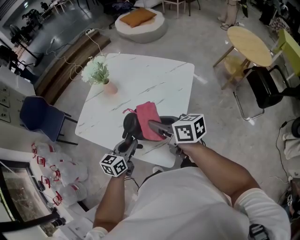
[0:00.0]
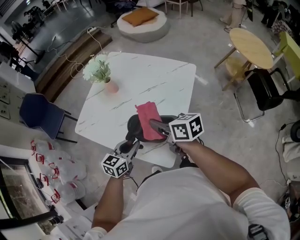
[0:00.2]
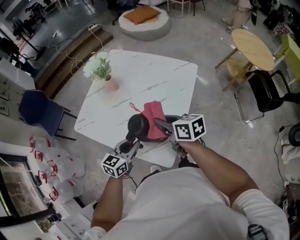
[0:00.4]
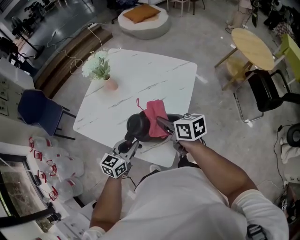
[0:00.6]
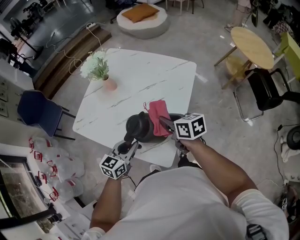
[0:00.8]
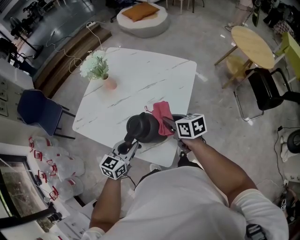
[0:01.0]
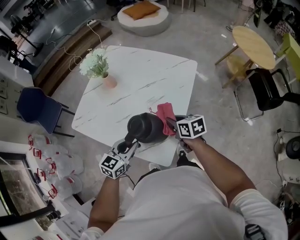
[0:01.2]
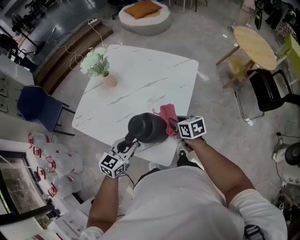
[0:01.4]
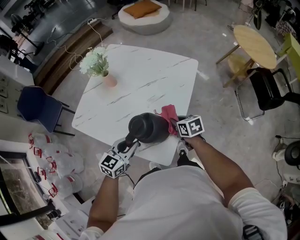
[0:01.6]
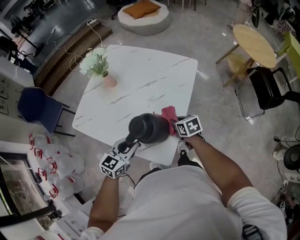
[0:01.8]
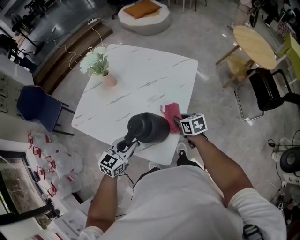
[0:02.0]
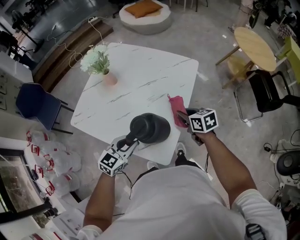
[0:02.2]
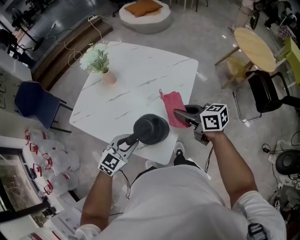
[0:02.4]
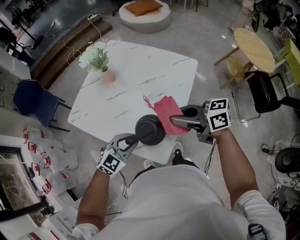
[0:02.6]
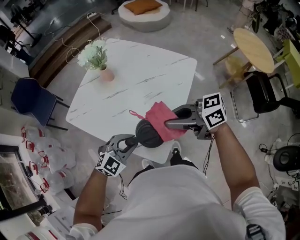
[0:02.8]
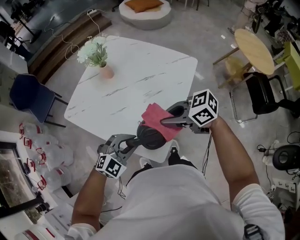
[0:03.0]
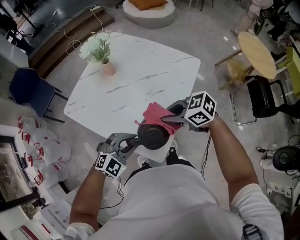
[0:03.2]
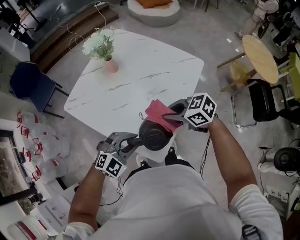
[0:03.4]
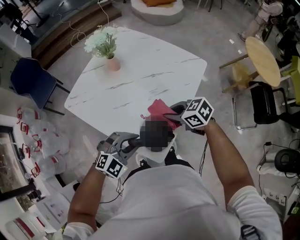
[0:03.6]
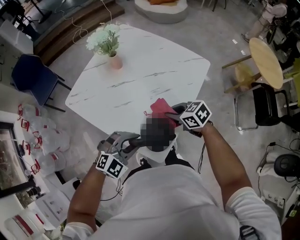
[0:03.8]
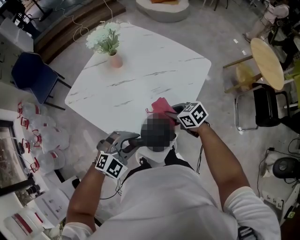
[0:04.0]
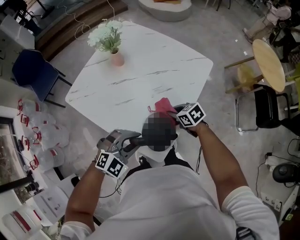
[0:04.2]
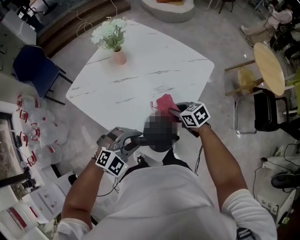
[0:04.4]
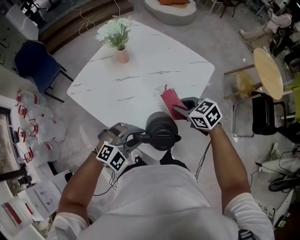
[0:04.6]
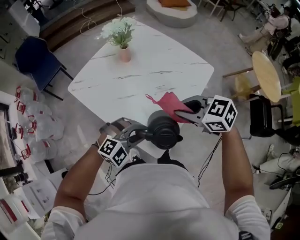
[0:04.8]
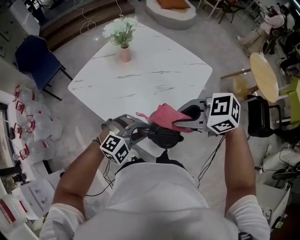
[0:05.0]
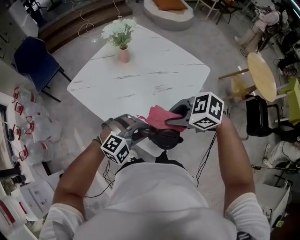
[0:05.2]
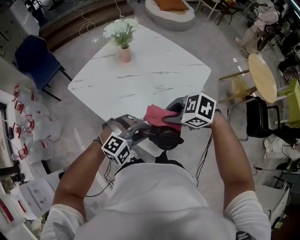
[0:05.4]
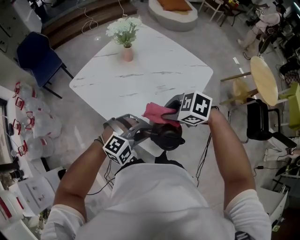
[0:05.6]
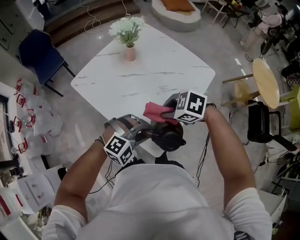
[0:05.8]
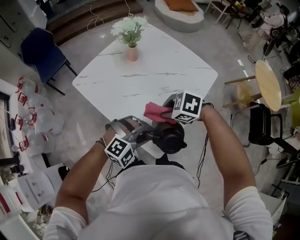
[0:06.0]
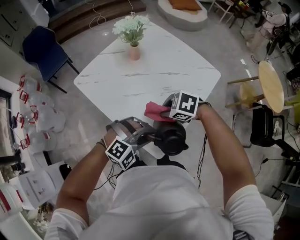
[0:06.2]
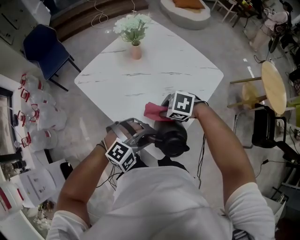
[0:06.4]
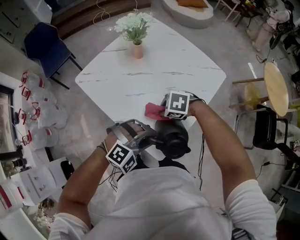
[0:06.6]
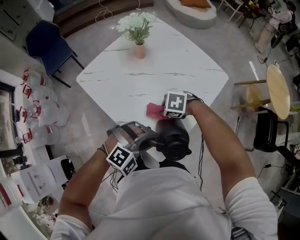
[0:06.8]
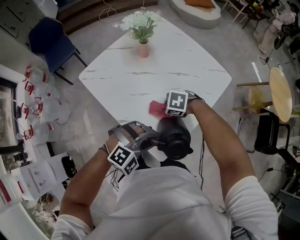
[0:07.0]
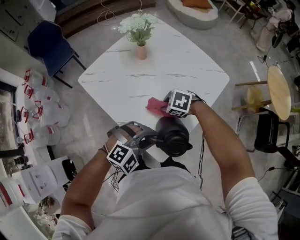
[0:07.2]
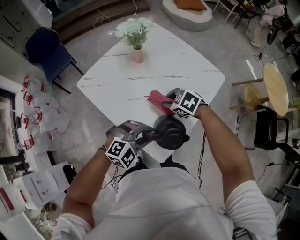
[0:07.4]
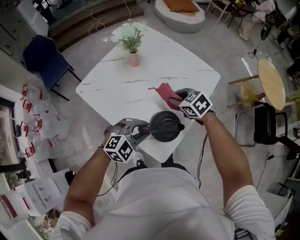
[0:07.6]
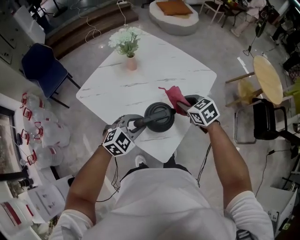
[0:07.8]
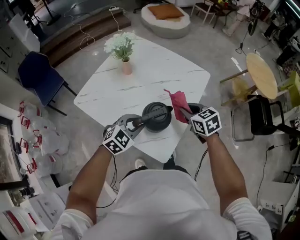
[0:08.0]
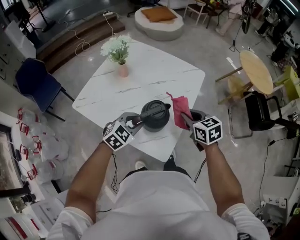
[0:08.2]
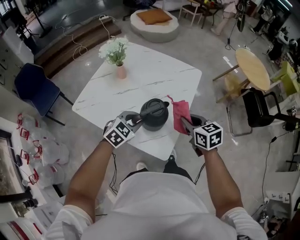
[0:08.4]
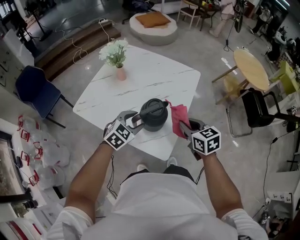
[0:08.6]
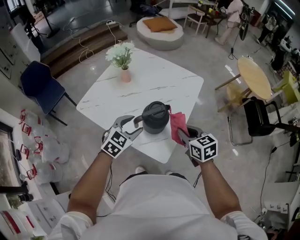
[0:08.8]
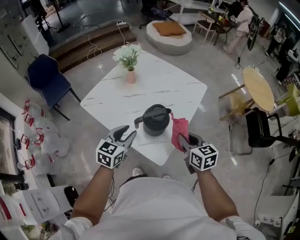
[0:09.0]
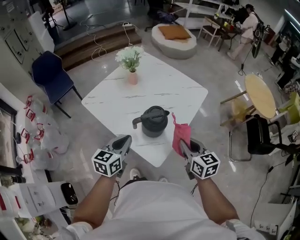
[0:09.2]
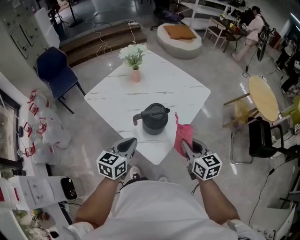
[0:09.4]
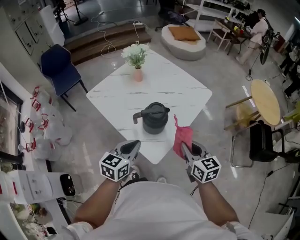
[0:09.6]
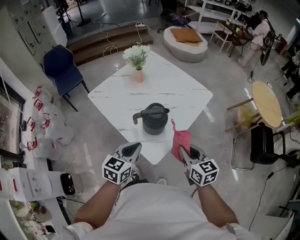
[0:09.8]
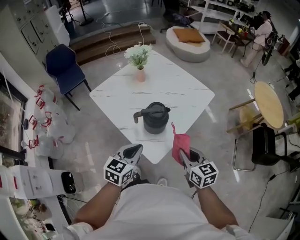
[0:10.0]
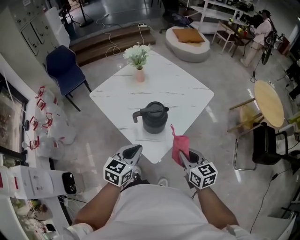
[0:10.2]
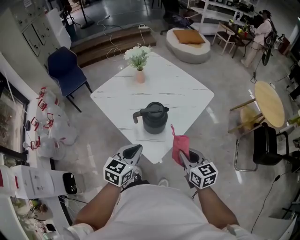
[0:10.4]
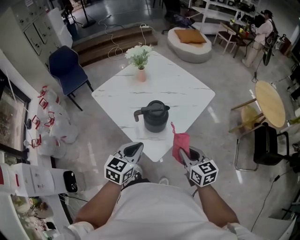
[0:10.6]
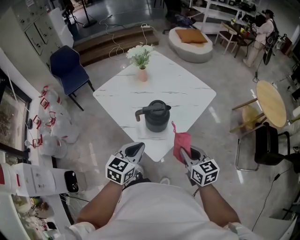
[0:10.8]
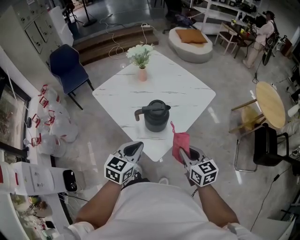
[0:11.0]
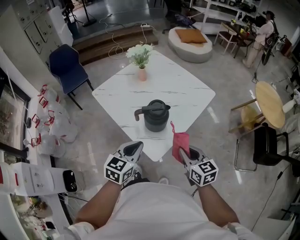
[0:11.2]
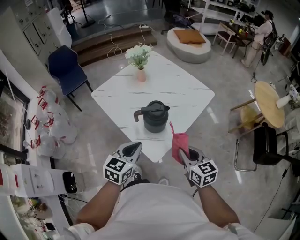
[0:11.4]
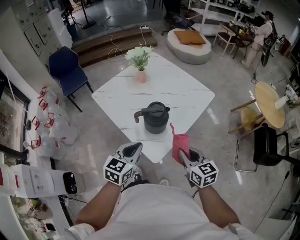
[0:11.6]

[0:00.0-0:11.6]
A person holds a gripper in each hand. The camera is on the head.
0:00.0 to 0:01.4: The right gripper travels downward and to the right by about 20 cm, and rotates some 30 degrees.
0:01.4 to 0:02.8: The left gripper turns by approximately 40 degrees; the right gripper shifts about 20 cm upward, and rotates approximately 50 degrees.
0:02.8 to 0:04.4: The right gripper shifts about 20 cm downward, and points its fingers about 40 degrees further downward.
0:04.4 to 0:05.8: The right gripper heads upward, covering about 10 cm, and swivels roughly 50 degrees.
0:05.8 to 0:07.2: The right gripper shifts some 10 cm downward.
0:07.2 to 0:08.8: The right gripper ends up approximately 25 cm from where it was, and angles its fingers upward, by approximately 30 degrees, while the left gripper ends up about 10 cm from where it was, changes its angle by some 40 degrees, and opens.
0:08.8 to 0:10.2: The left gripper heads backward, covering about 15 cm, turns by roughly 40 degrees, and closes up. Meanwhile the right gripper is displaced backward by some 10 cm.
0:10.2 to 0:11.6: The grippers stay close to where they were, moving slightly.

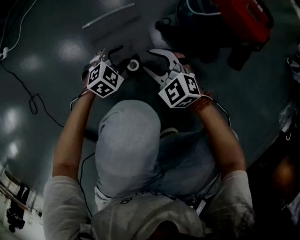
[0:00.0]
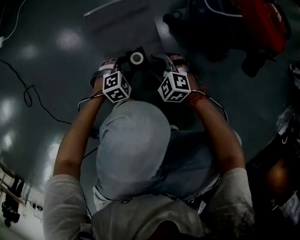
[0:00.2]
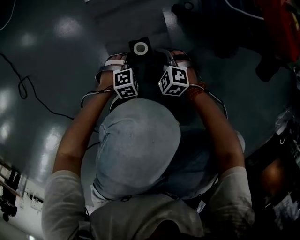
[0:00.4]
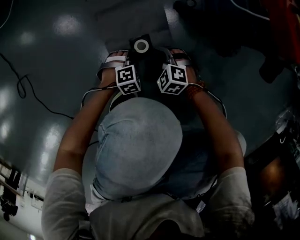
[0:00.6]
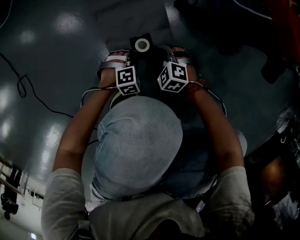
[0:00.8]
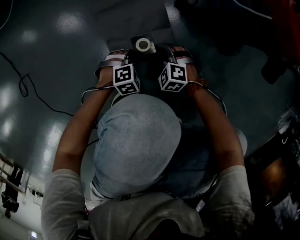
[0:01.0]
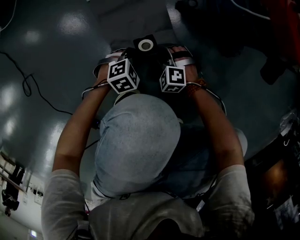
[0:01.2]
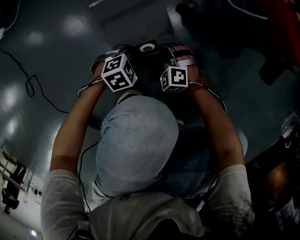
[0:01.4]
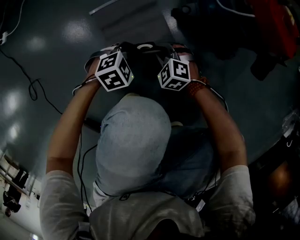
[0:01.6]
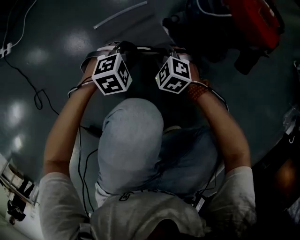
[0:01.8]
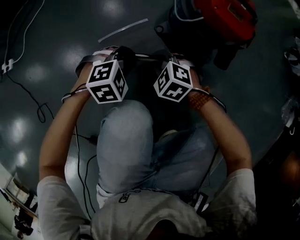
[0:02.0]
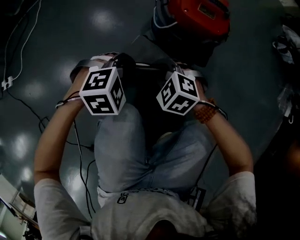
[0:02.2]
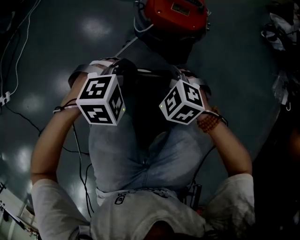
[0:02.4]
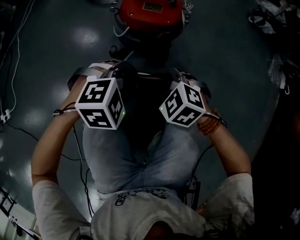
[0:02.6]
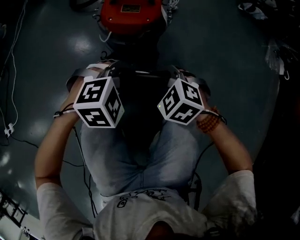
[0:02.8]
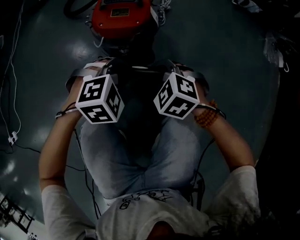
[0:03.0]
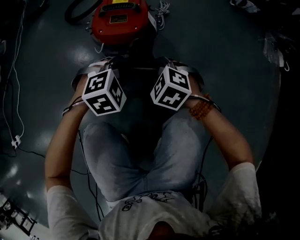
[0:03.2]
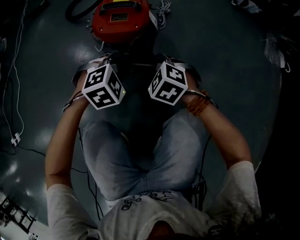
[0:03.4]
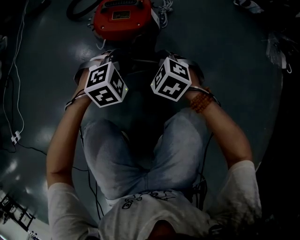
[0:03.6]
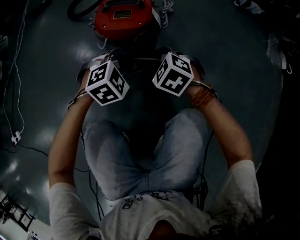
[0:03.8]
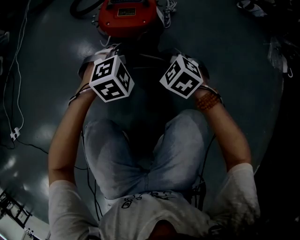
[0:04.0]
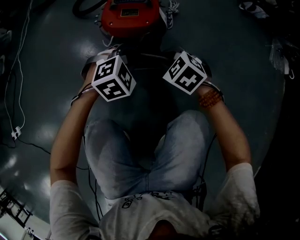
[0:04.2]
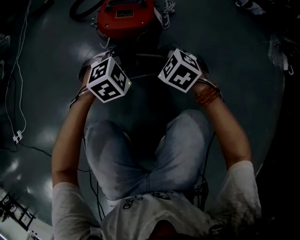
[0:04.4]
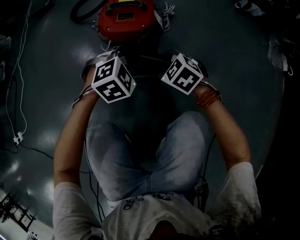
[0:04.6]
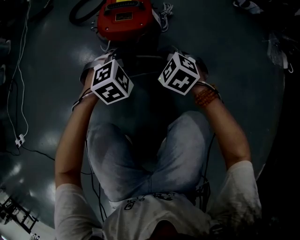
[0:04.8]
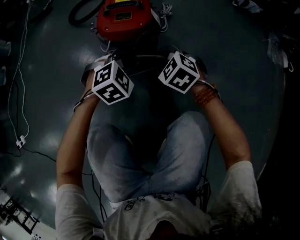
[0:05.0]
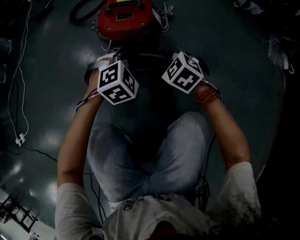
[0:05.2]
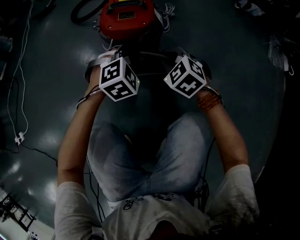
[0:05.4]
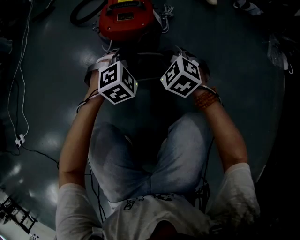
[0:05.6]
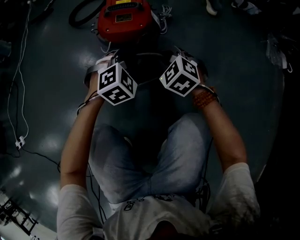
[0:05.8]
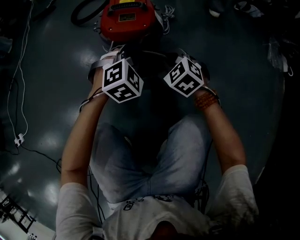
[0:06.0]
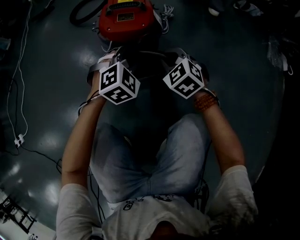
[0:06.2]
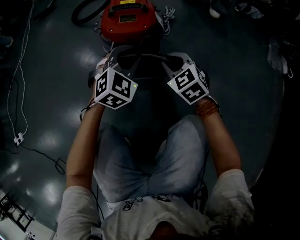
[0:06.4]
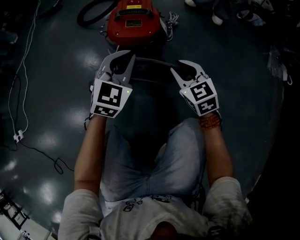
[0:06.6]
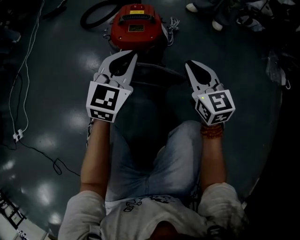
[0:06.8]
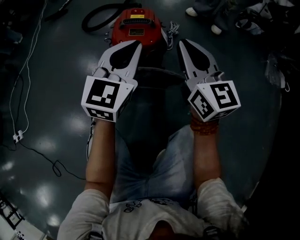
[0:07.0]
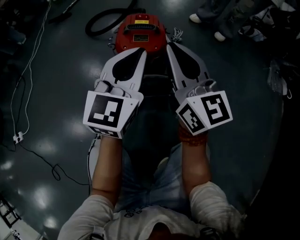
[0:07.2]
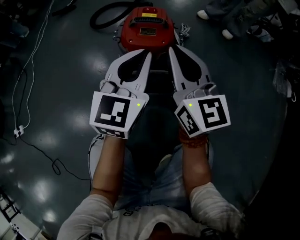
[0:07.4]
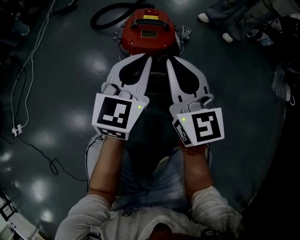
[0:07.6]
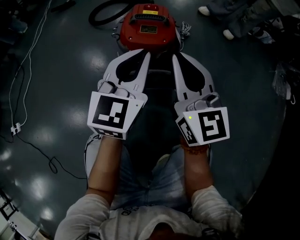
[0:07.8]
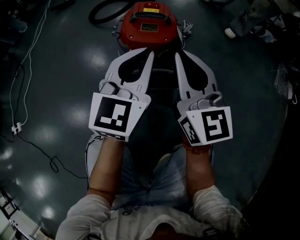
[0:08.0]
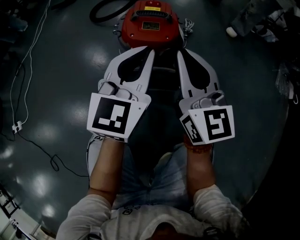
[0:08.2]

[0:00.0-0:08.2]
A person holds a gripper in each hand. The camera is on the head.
0:00.0 to 0:01.6: The right gripper moves downward, about 15 cm, and closes up. The left gripper reaches some 20 cm downward, then returns, and closes.
0:01.6 to 0:03.2: The left gripper ends up about 40 cm from where it was, and rolls clockwise, seen from behind, by about 40 degrees, while the right gripper goes roughly 30 cm upward, and rotates about 40 degrees.
0:03.2 to 0:05.0: The grippers move only a little.
0:05.0 to 0:06.6: The left gripper goes some 10 cm upward, and changes its angle by about 40 degrees. Meanwhile the right gripper changes place by approximately 5 cm, and changes its angle by roughly 30 degrees.
0:06.6 to 0:08.2: The right gripper shifts some 15 cm upward and to the left, and tips its fingers upward by about 30 degrees. Meanwhile the left gripper heads upward, covering about 10 cm, and changes its angle by about 20 degrees.

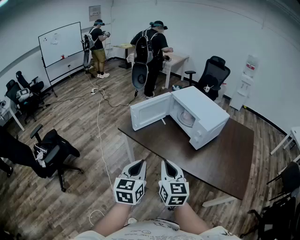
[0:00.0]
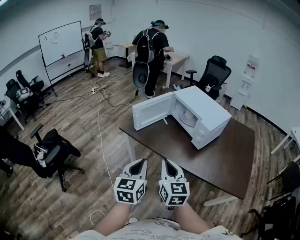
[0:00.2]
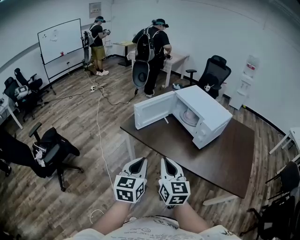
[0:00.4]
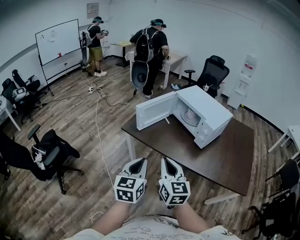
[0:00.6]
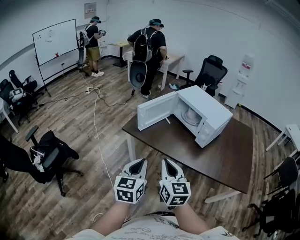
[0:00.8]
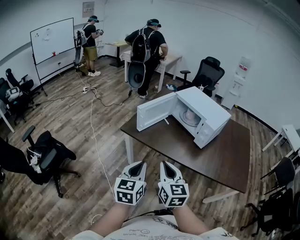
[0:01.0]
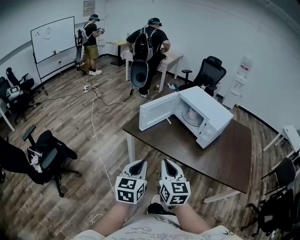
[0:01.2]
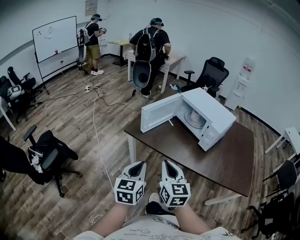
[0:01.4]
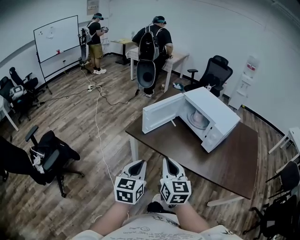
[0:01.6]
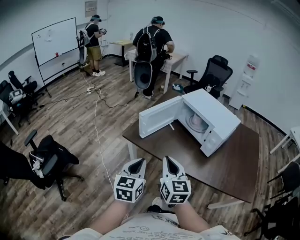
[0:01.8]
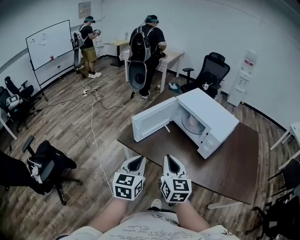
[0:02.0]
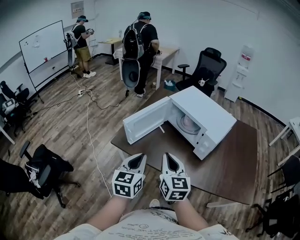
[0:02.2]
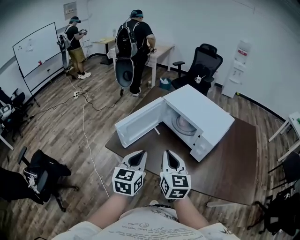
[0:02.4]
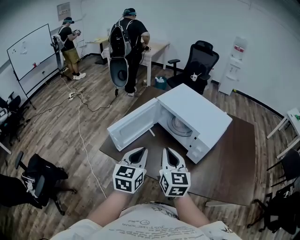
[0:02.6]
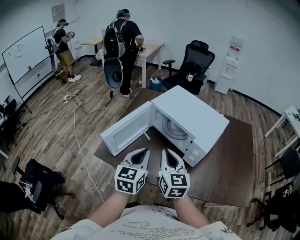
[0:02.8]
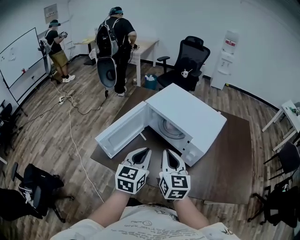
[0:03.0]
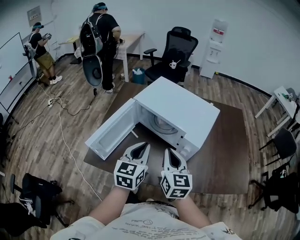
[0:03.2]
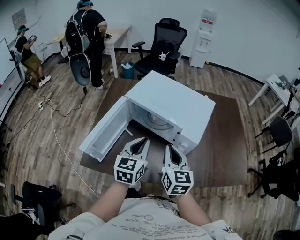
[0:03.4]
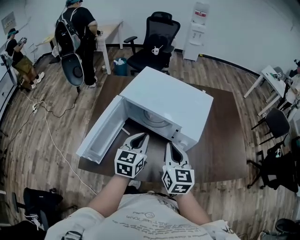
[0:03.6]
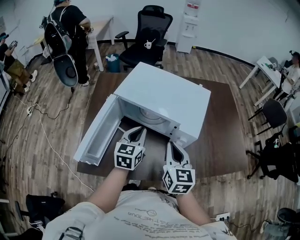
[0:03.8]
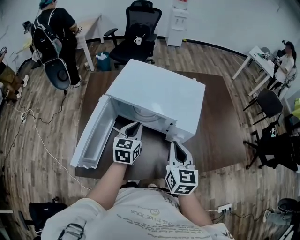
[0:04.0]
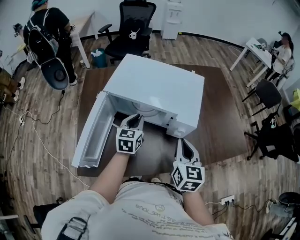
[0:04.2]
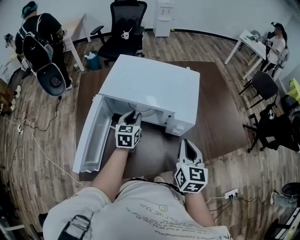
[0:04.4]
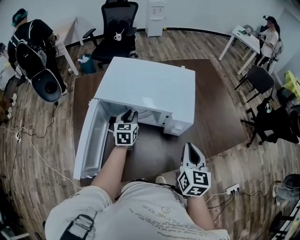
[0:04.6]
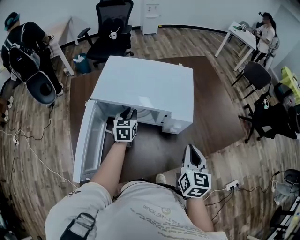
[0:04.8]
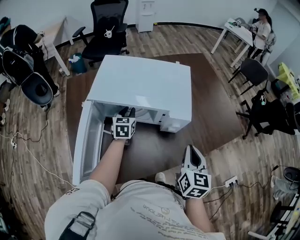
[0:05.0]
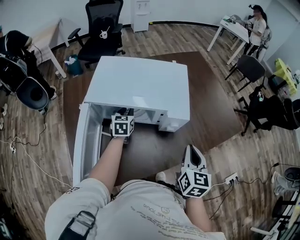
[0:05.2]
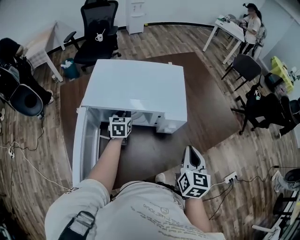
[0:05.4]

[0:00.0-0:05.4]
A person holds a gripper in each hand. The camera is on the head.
0:00.0 to 0:01.4: The grippers both shift to the left by some 10 cm.
0:01.4 to 0:02.8: The two grippers go roughly 30 cm forward and to the right.
0:02.8 to 0:04.0: The left gripper changes place by approximately 20 cm, and rotates roughly 20 degrees. Meanwhile the right gripper shifts by approximately 10 cm, and rotates roughly 30 degrees.
0:04.0 to 0:05.4: The right gripper is displaced to the right by some 10 cm, and changes its angle by approximately 30 degrees. Meanwhile the left gripper heads forward and downward, covering approximately 15 cm.
